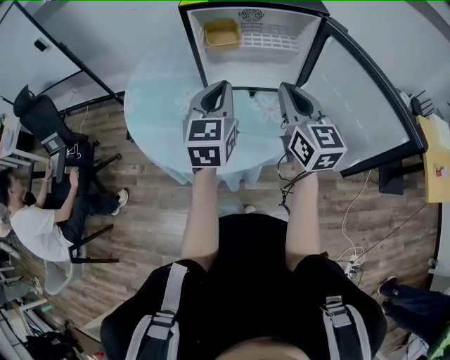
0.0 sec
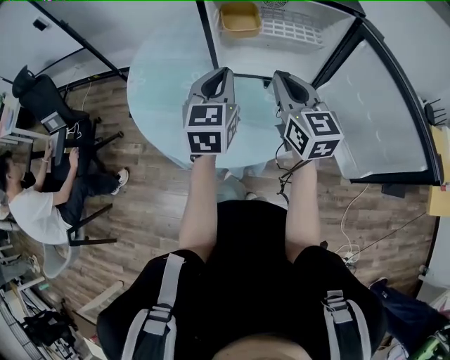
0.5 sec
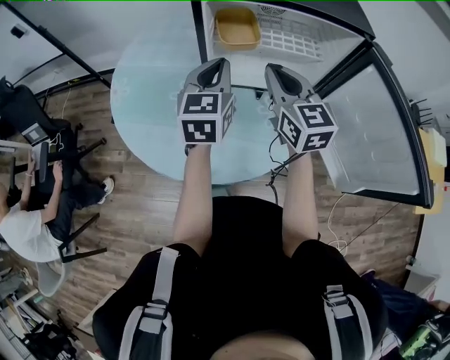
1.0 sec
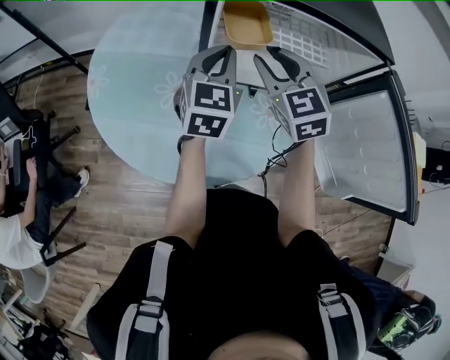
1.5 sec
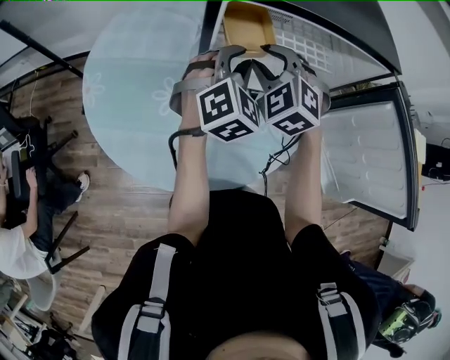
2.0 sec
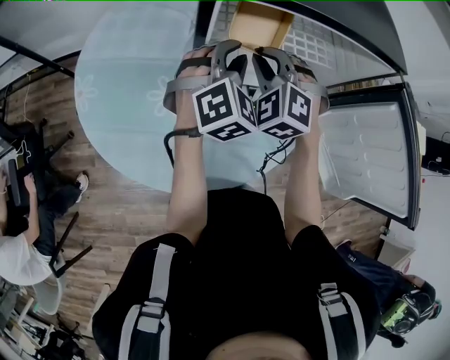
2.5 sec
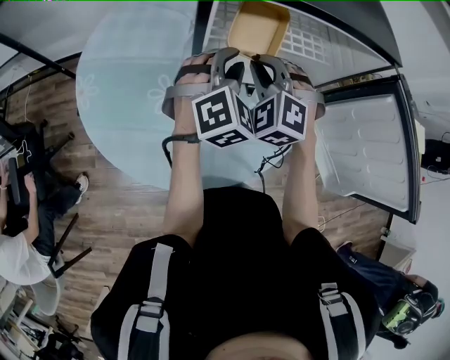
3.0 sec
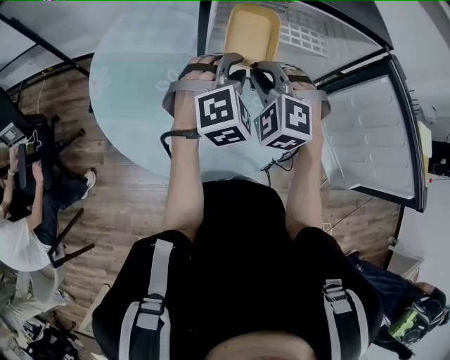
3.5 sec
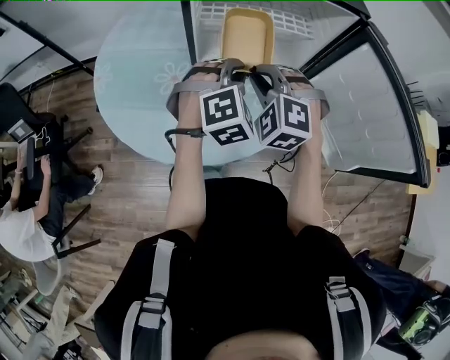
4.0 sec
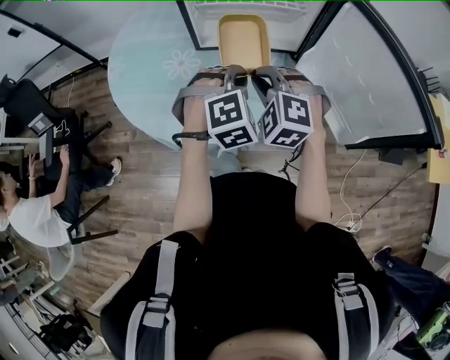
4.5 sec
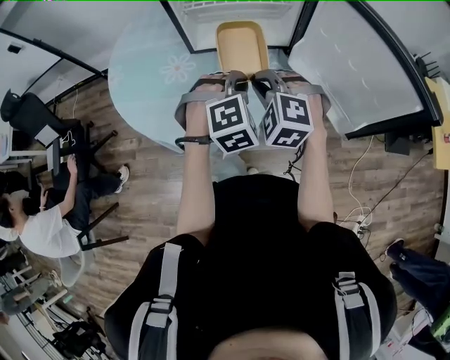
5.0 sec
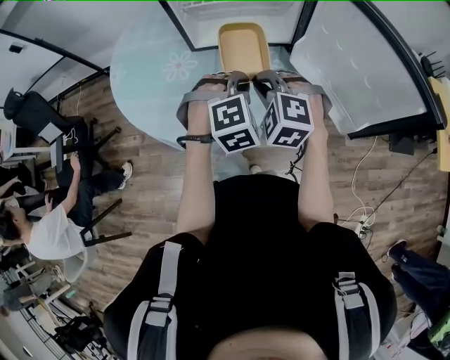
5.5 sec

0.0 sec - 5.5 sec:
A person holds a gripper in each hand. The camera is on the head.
0.0 sec - 2.0 sec: The right gripper moves forward and to the left, about 25 cm, rolls counterclockwise, seen from behind, by roughly 60 degrees, and opens, while the left gripper goes some 20 cm forward, swivels roughly 40 degrees, and opens its fingers.
2.0 sec - 3.5 sec: The grippers both shift backward by approximately 10 cm. The right gripper closes its fingers.
3.5 sec - 5.5 sec: The two grippers go roughly 20 cm backward and to the right. The left gripper closes.

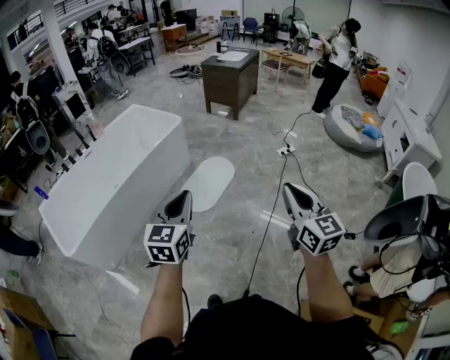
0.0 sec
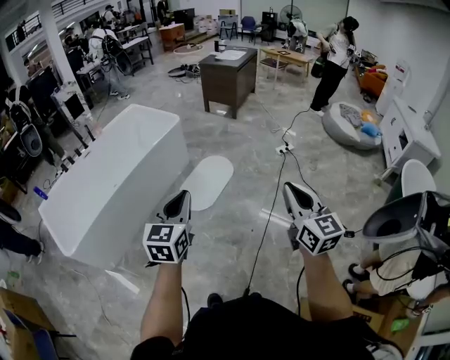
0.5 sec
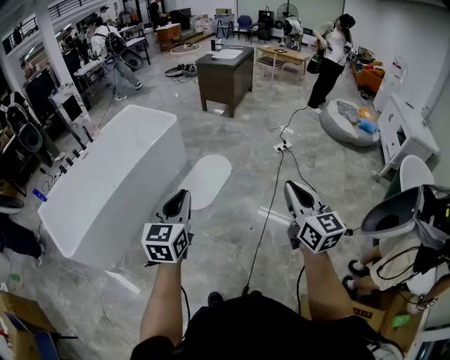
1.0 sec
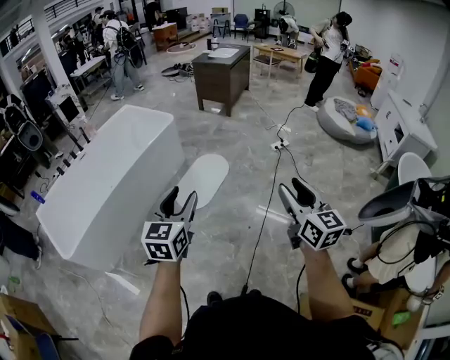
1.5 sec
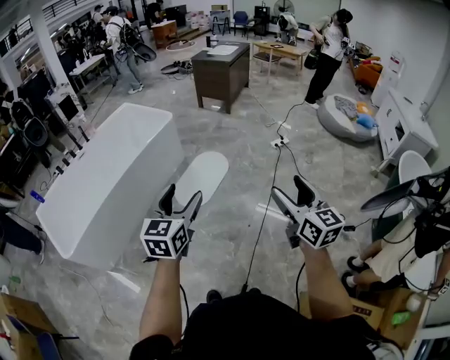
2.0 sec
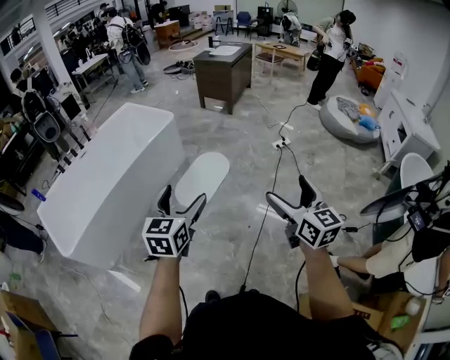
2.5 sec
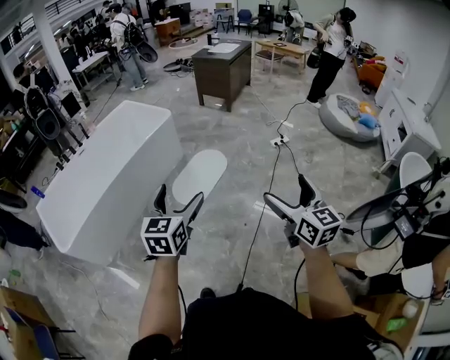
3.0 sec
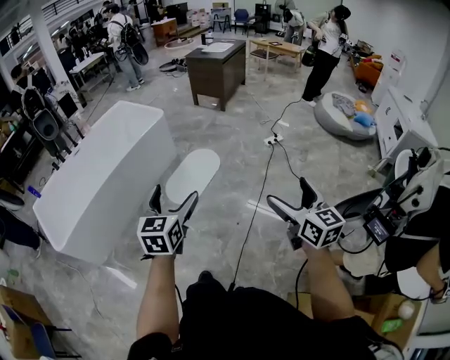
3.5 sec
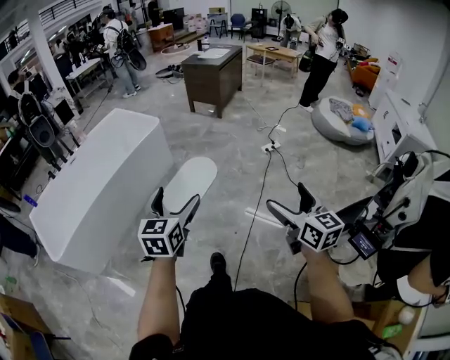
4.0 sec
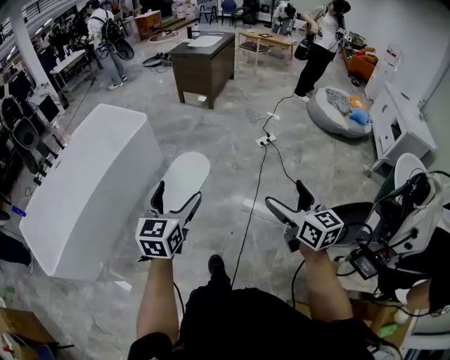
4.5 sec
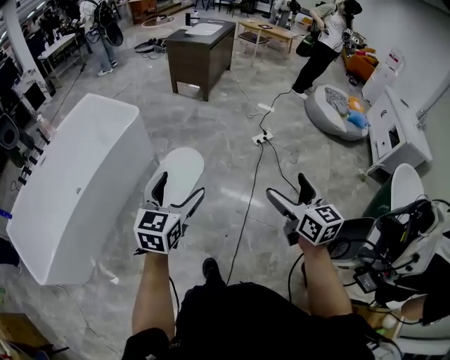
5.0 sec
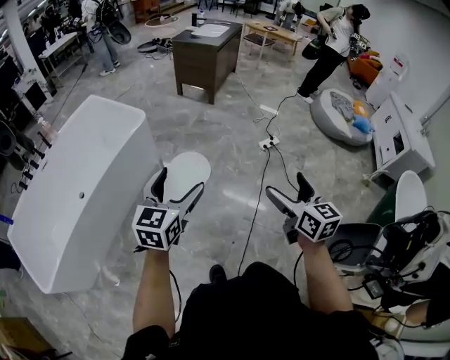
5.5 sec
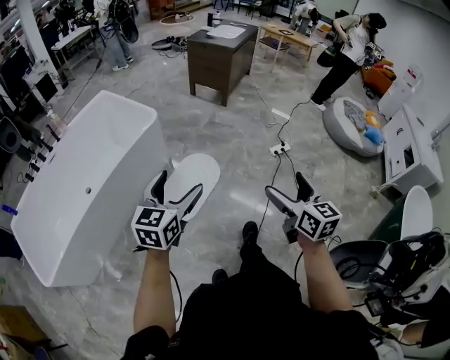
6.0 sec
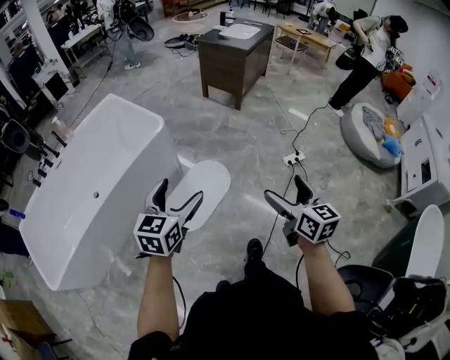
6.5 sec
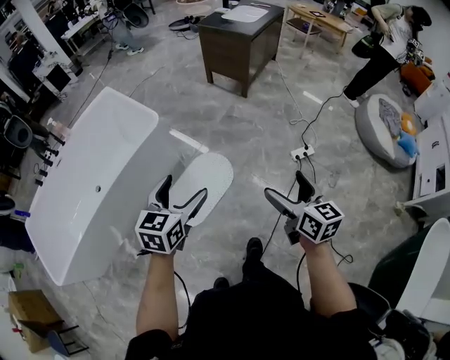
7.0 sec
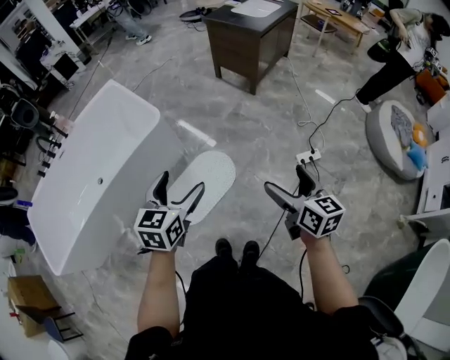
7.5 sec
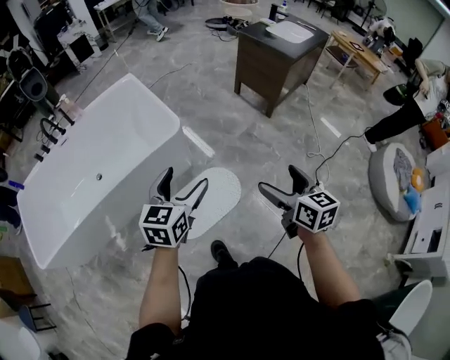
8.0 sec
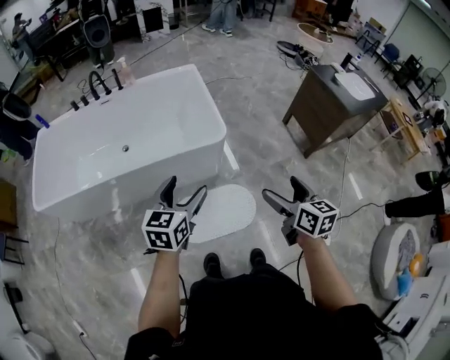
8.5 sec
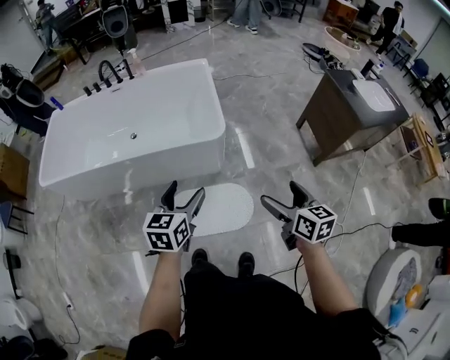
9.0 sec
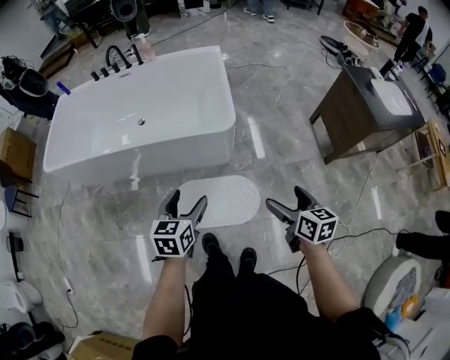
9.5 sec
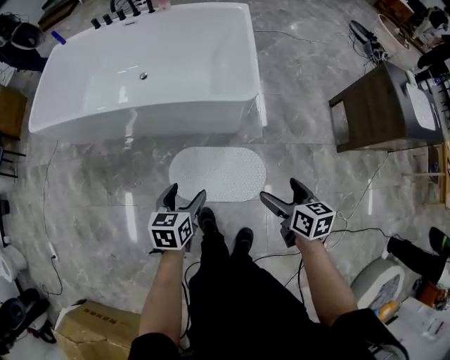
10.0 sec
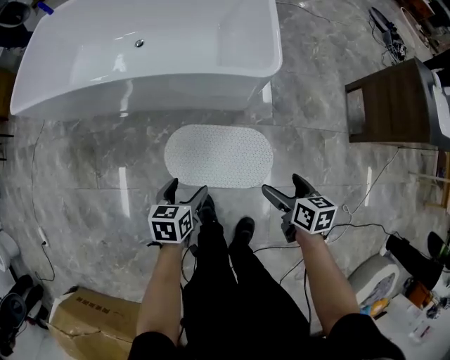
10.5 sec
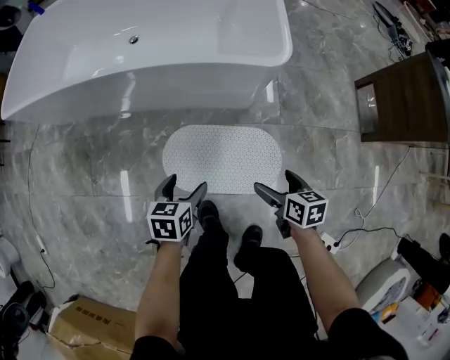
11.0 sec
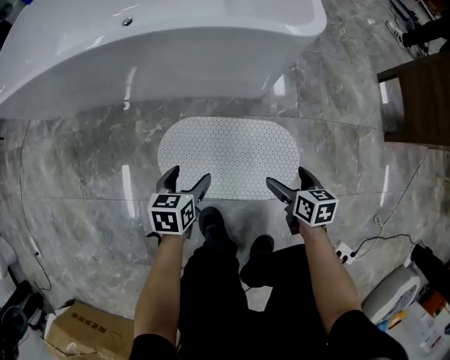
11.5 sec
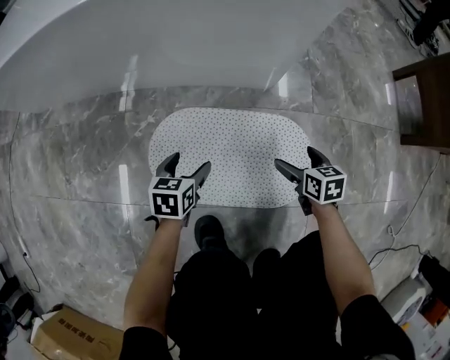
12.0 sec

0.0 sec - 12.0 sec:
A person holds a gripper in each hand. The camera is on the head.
0.0 sec - 2.0 sec: The right gripper opens. Meanwhile the left gripper opens up.
2.0 sec - 4.0 sec: Both grippers travel together to the right, about 10 cm.
4.0 sec - 6.0 sec: The two grippers go approximately 30 cm forward.
6.0 sec - 8.0 sec: Both grippers move forward, approximately 35 cm. The right gripper turns by about 30 degrees, while the left gripper swivels some 20 degrees.
8.0 sec - 10.0 sec: The two grippers go approximately 20 cm downward. The right gripper changes its angle by some 40 degrees. Meanwhile the left gripper turns by approximately 50 degrees.
10.0 sec - 12.0 sec: The two grippers go roughly 50 cm downward.

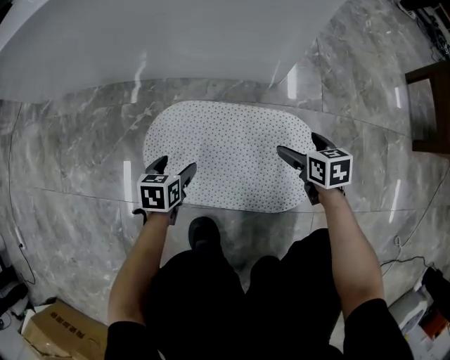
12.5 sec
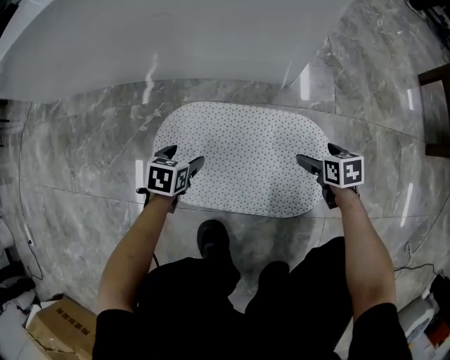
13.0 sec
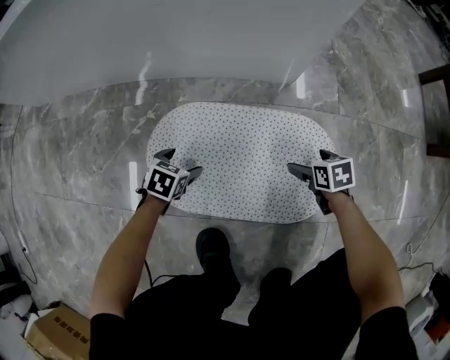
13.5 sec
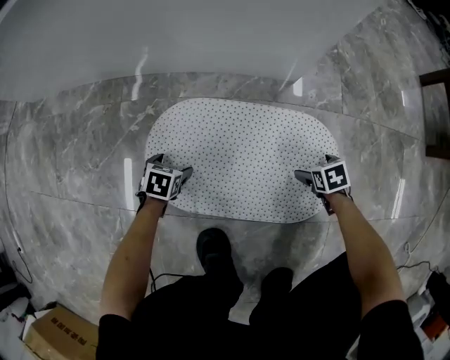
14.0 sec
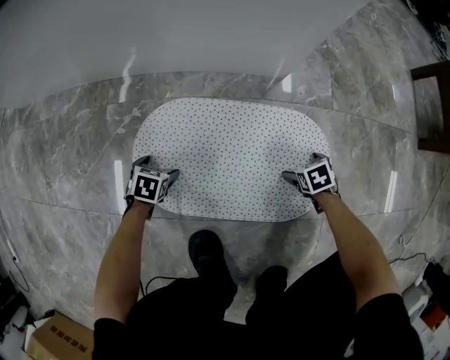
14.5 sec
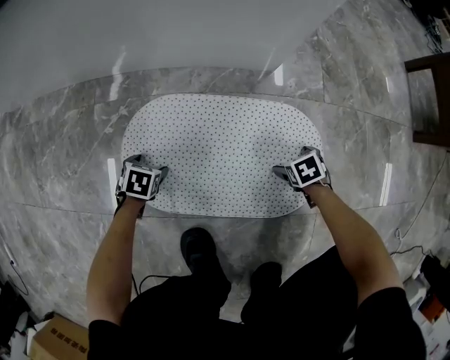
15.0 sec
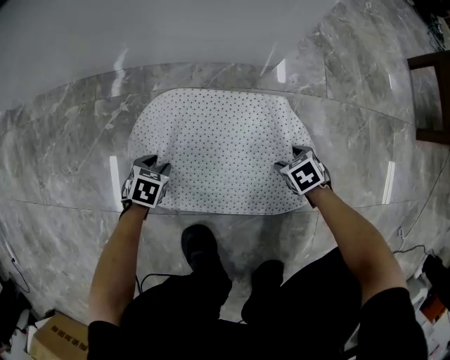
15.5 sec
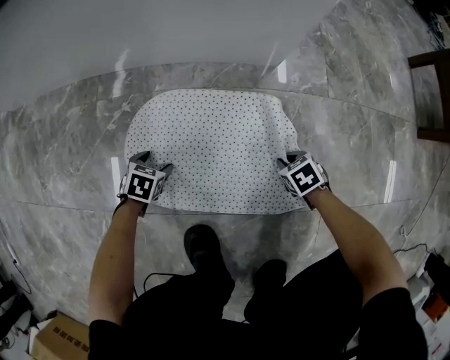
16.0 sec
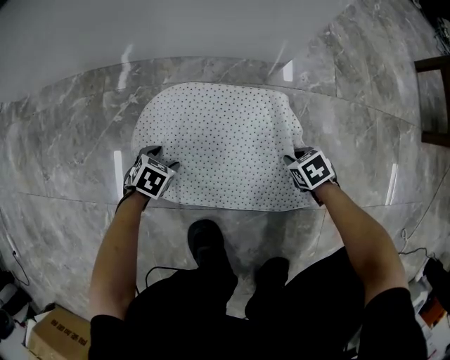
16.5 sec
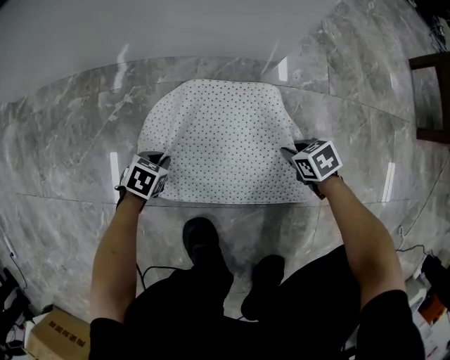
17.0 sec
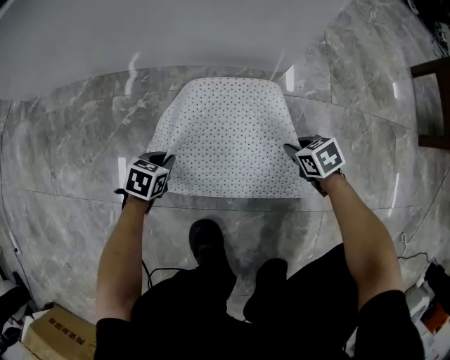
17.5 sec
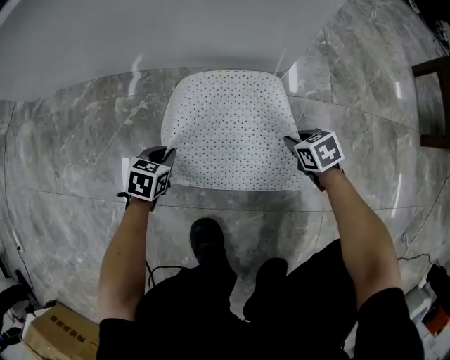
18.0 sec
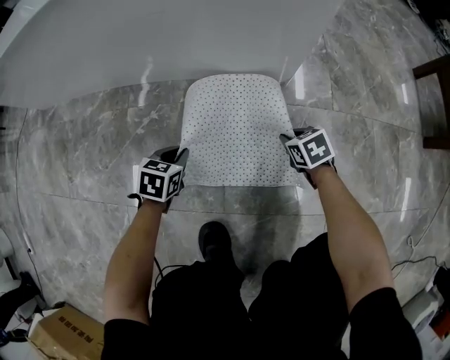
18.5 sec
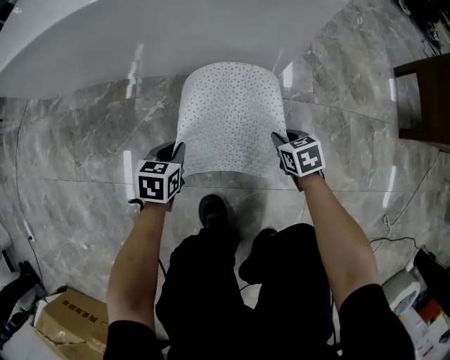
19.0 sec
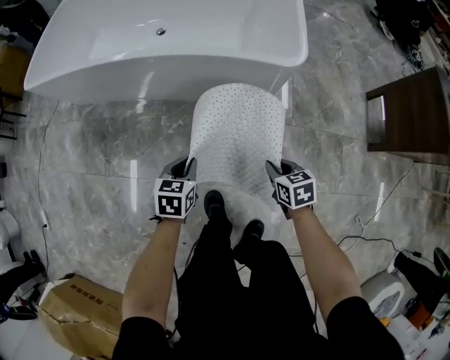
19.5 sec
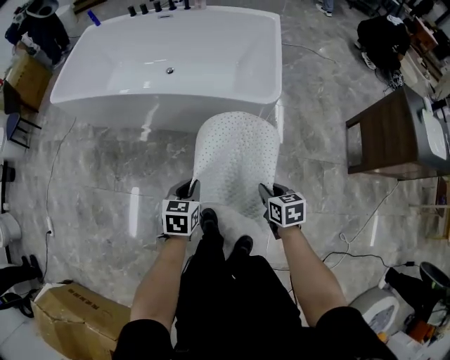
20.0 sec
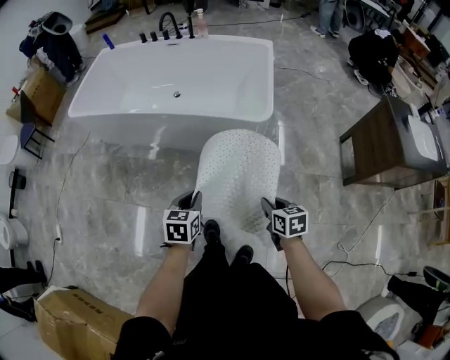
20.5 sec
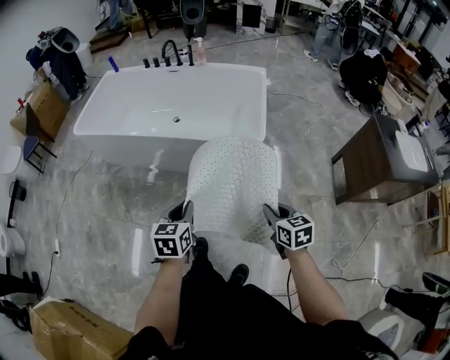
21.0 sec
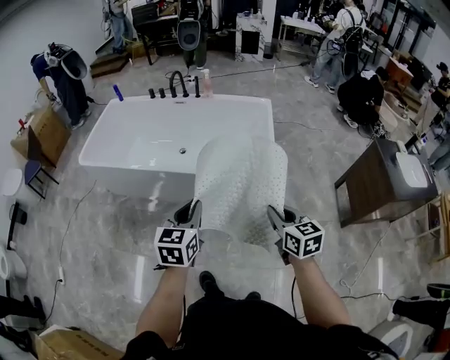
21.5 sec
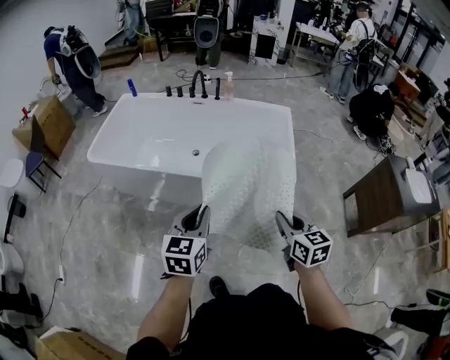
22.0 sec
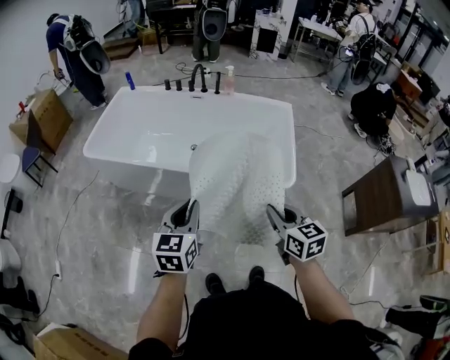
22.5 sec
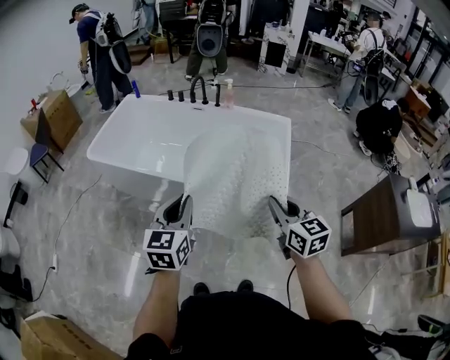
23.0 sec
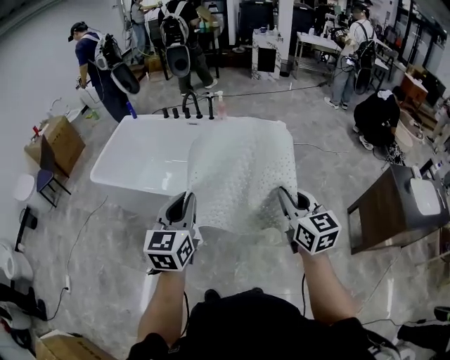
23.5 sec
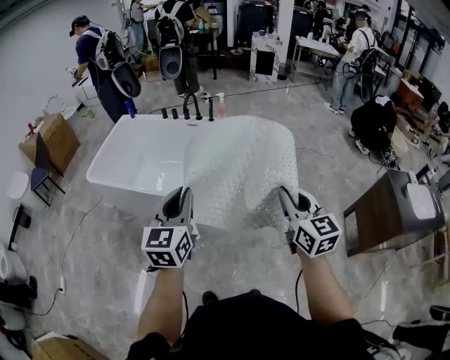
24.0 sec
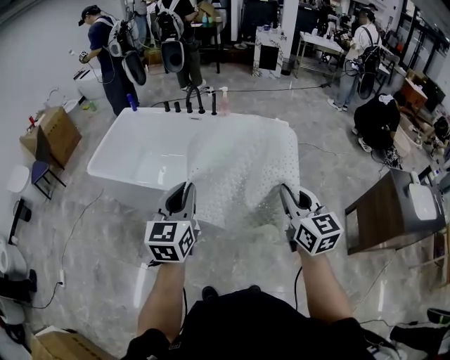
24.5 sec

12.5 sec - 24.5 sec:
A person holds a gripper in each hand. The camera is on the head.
12.5 sec - 14.5 sec: Both grippers move downward, approximately 15 cm. The right gripper swivels some 30 degrees. Meanwhile the left gripper turns by about 20 degrees.
14.5 sec - 16.5 sec: The right gripper shifts by about 5 cm, and closes up.
16.5 sec - 18.5 sec: The left gripper is displaced upward by roughly 10 cm, swivels approximately 20 degrees, and closes up. Meanwhile the right gripper ends up roughly 15 cm from where it was.
18.5 sec - 20.5 sec: The two grippers go approximately 60 cm upward. The left gripper swivels roughly 20 degrees. Meanwhile the right gripper turns by about 20 degrees.
20.5 sec - 22.5 sec: Both grippers move upward, forward and to the left, some 30 cm. The right gripper rotates some 20 degrees, while the left gripper changes its angle by approximately 20 degrees.
22.5 sec - 24.5 sec: The grippers both shift upward, to the right and forward by approximately 15 cm.
